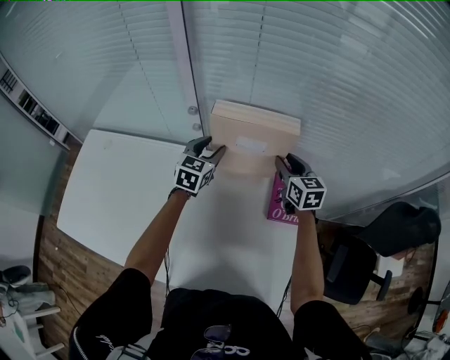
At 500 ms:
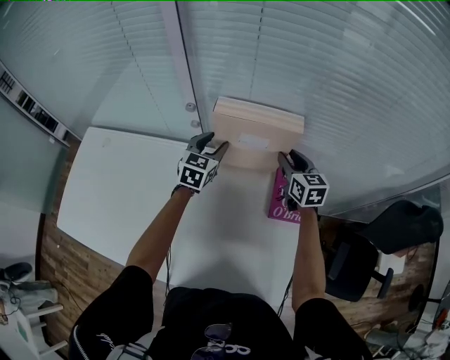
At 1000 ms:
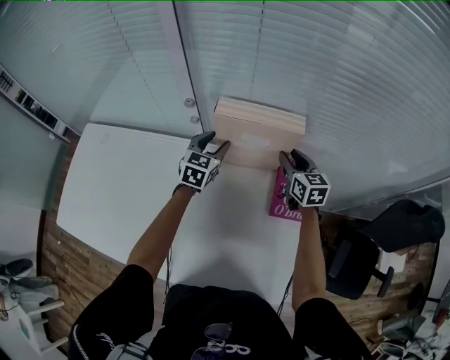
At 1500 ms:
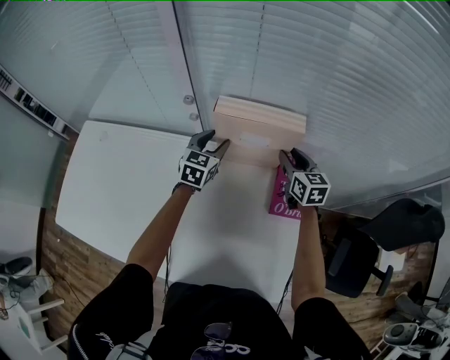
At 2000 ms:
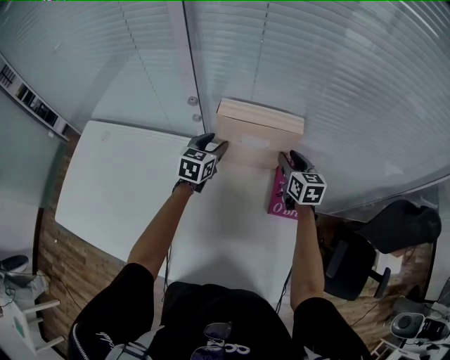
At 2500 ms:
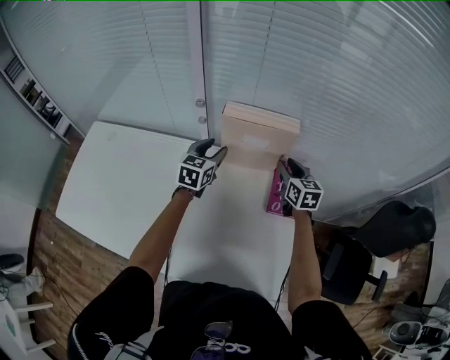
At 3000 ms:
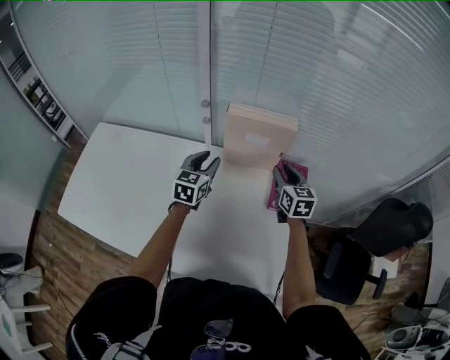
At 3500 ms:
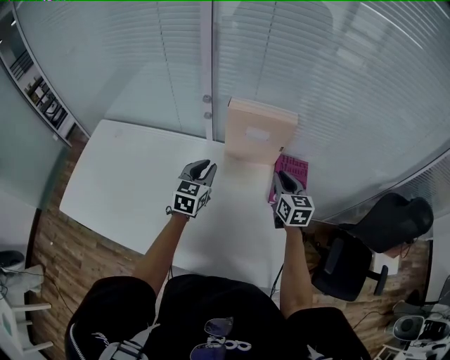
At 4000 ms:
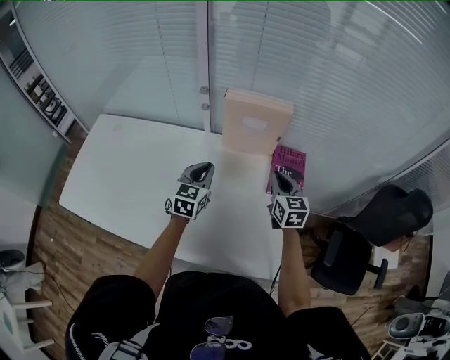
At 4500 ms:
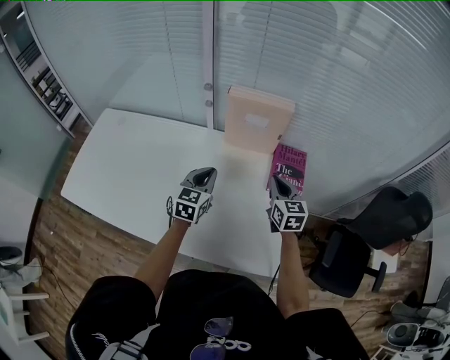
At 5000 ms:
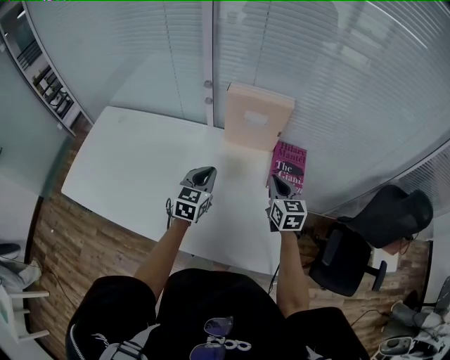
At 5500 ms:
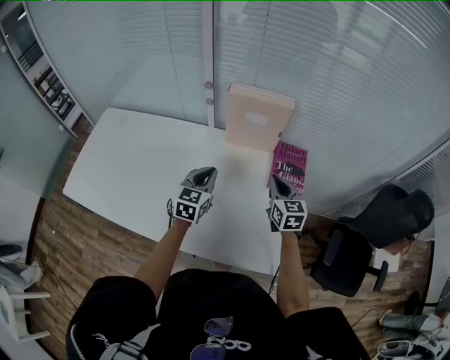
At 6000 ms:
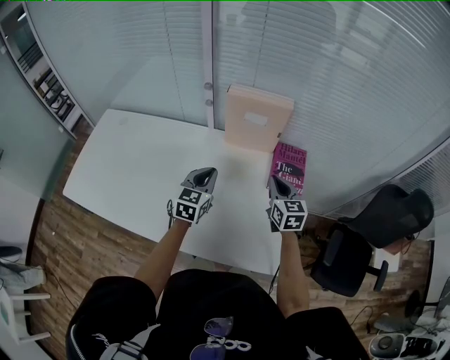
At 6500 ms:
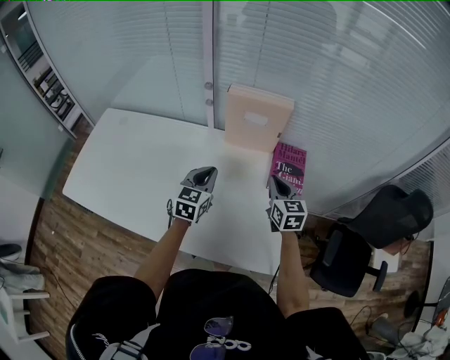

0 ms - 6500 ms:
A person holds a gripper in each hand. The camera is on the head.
0 ms - 2000 ms: There are only small adjustments of the grippers.
2000 ms - 4500 ms: Both grippers move backward, some 20 cm. The left gripper closes up. The right gripper closes.
4500 ms - 6500 ms: The two grippers keep their place.

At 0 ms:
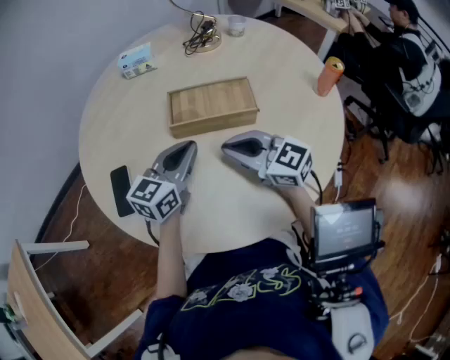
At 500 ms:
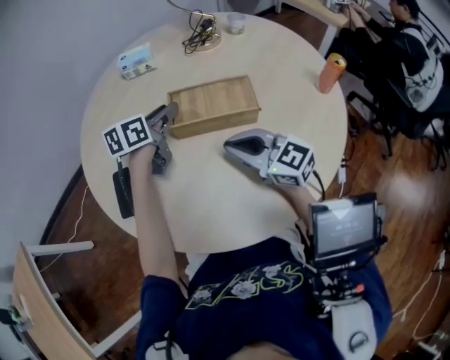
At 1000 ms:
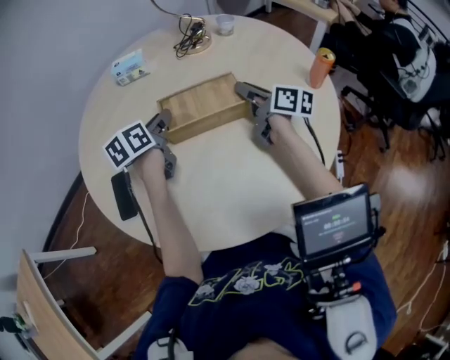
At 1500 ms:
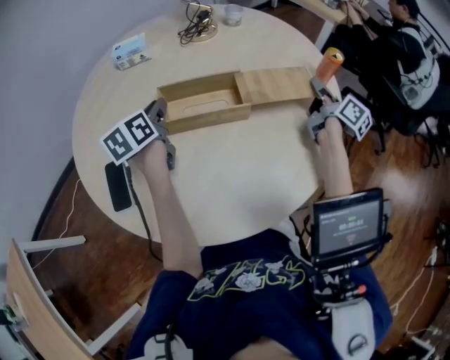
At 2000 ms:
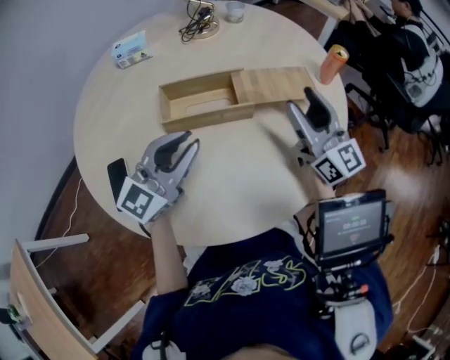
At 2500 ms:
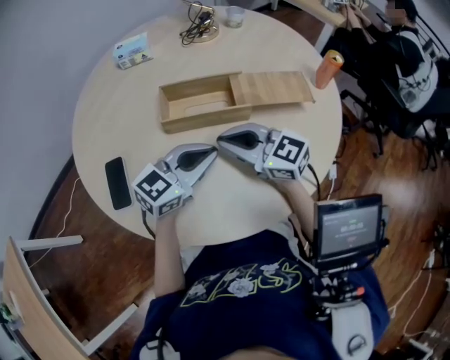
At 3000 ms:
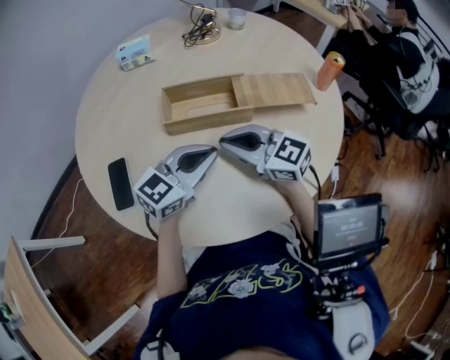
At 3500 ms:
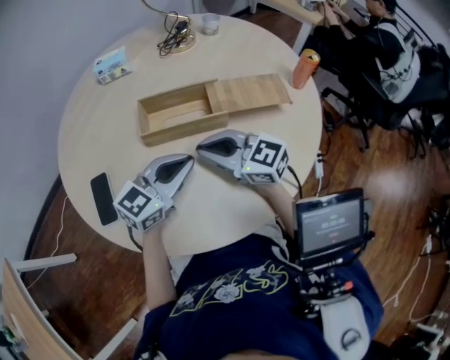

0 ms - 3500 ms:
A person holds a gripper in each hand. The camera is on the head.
0 ms - 2000 ms: The left gripper goes approximately 5 cm upward, changes its angle by approximately 30 degrees, and opens, then closes again. Meanwhile the right gripper turns by approximately 40 degrees, and opens up.
2000 ms - 3500 ms: The right gripper goes some 20 cm to the left and downward, changes its angle by some 40 degrees, and closes, while the left gripper goes some 5 cm downward.

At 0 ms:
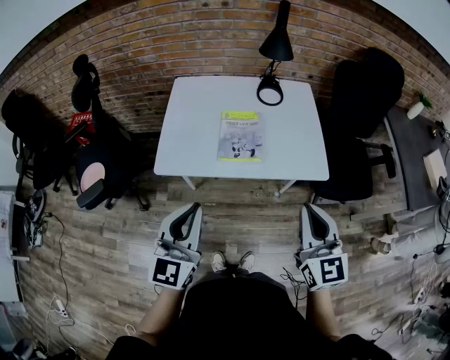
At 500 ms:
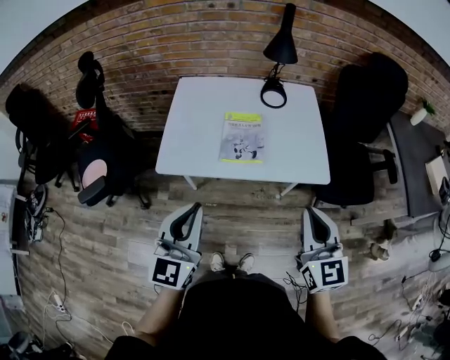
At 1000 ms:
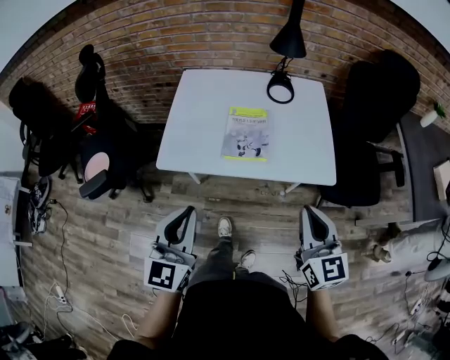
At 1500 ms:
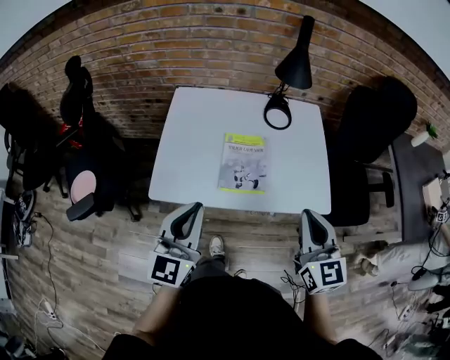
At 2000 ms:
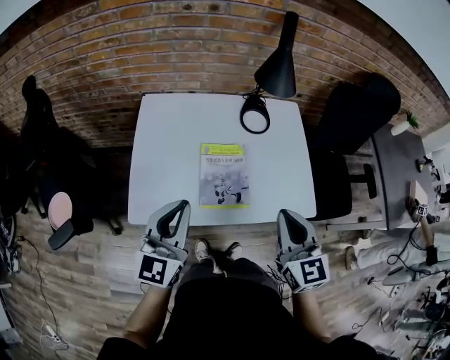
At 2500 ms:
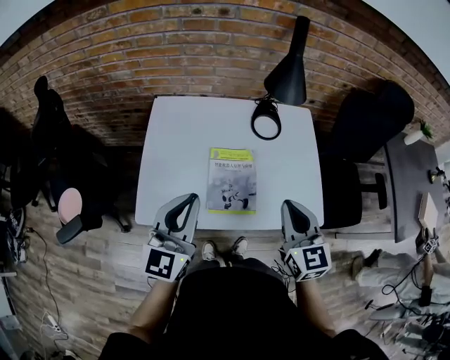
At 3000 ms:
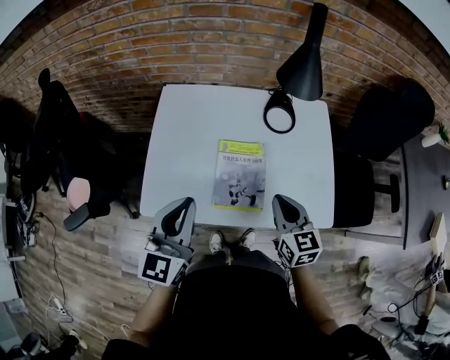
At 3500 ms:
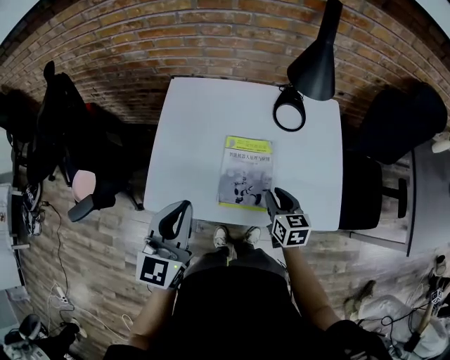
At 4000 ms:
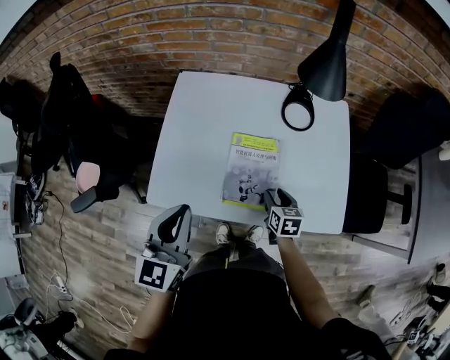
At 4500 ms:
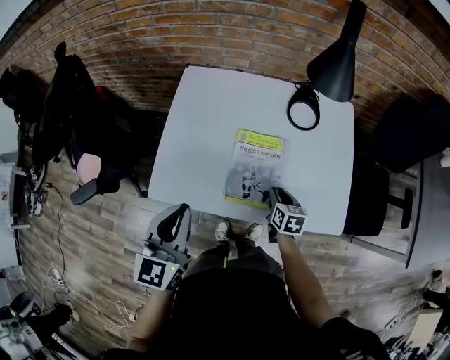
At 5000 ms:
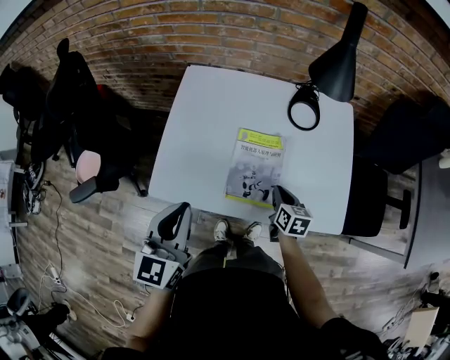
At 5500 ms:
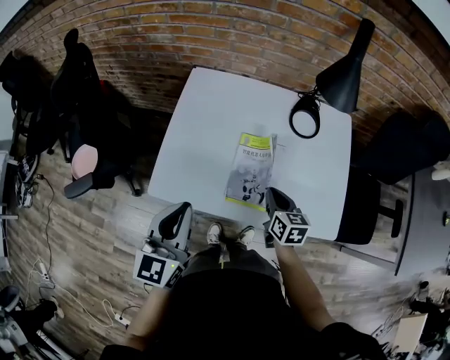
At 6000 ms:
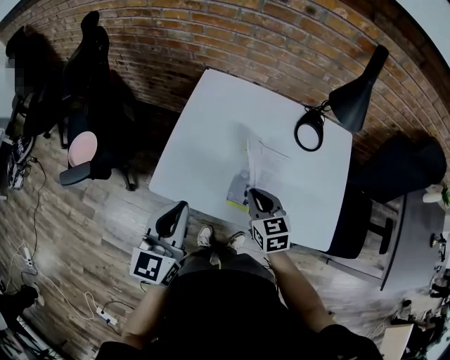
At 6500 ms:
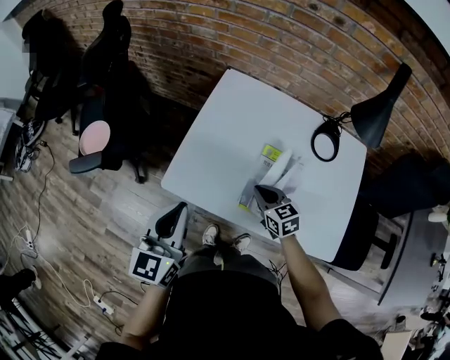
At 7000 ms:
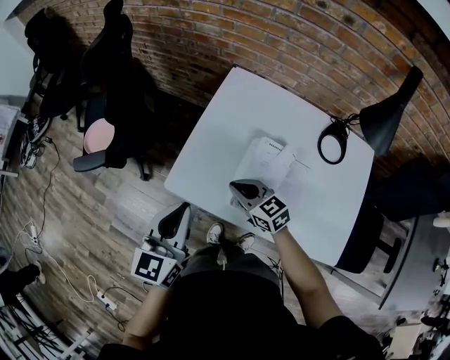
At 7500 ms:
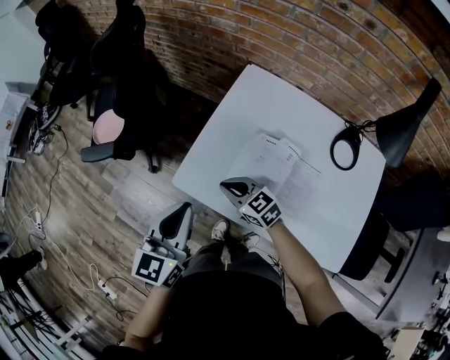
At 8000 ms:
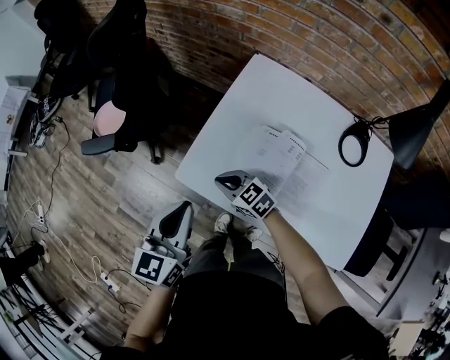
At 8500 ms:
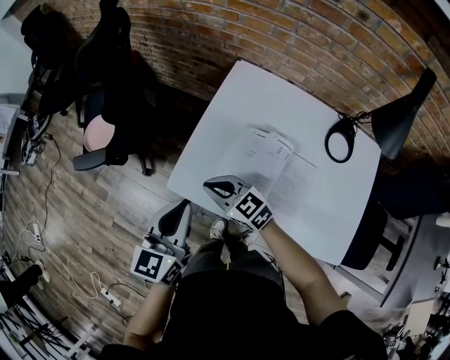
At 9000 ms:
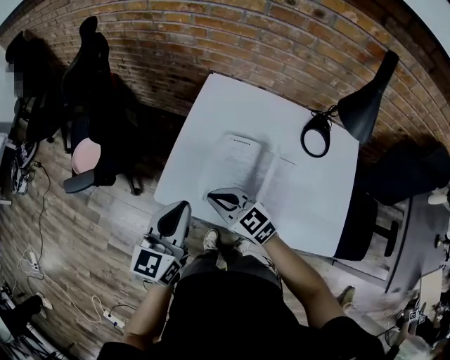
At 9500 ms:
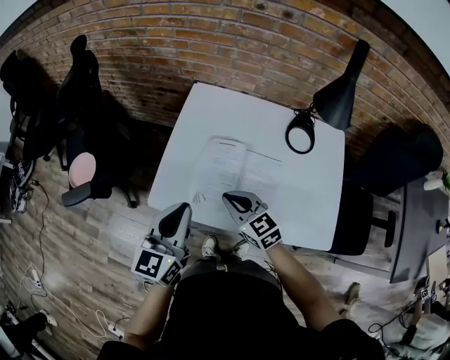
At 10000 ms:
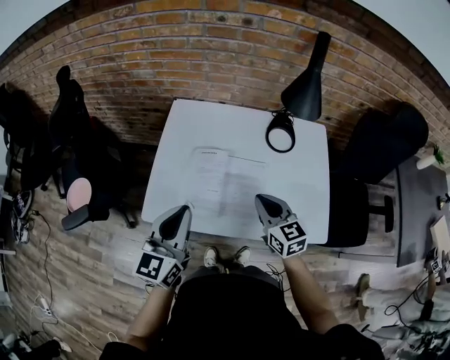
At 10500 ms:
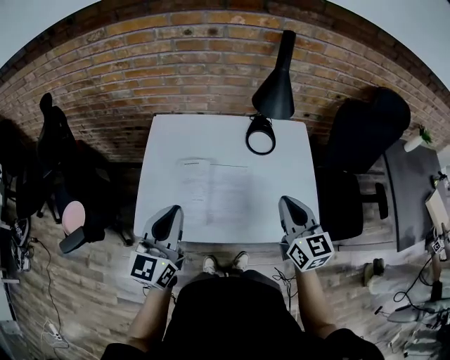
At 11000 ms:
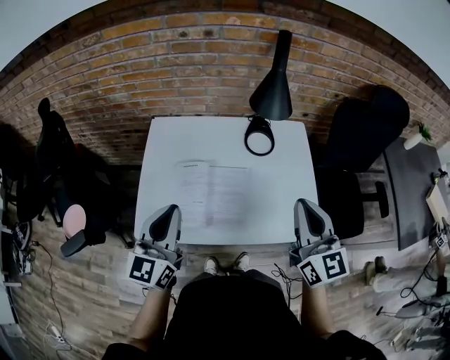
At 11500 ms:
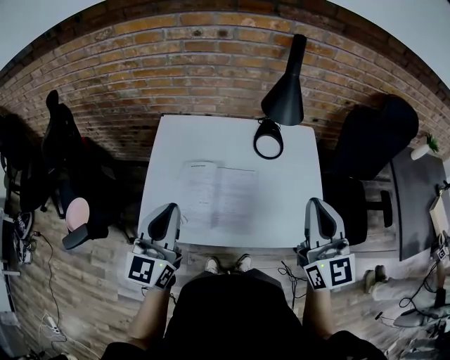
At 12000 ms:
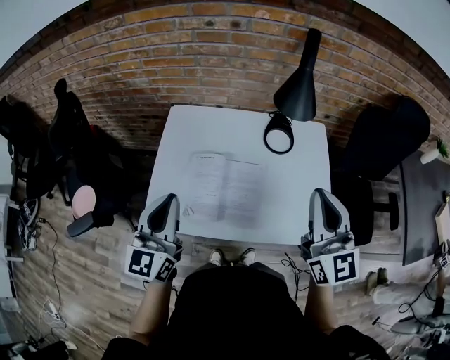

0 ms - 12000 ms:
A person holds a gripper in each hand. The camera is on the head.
0 ms - 2000 ms: Both grippers move forward, about 20 cm.
2000 ms - 4000 ms: The right gripper is displaced downward by roughly 30 cm, rotates approximately 40 degrees, and opens its fingers.
4000 ms - 6000 ms: The right gripper goes approximately 15 cm to the left and upward, swivels roughly 30 degrees, and closes its fingers; the left gripper travels to the left by about 5 cm.
6000 ms - 8000 ms: The right gripper shifts by roughly 25 cm, and swivels about 50 degrees; the left gripper ends up roughly 5 cm from where it was.
8000 ms - 10000 ms: The left gripper shifts by about 15 cm, and swivels roughly 30 degrees, while the right gripper moves approximately 35 cm, and swivels approximately 60 degrees.
10000 ms - 12000 ms: The right gripper shifts some 25 cm upward and to the right, and turns by roughly 30 degrees; the left gripper changes place by some 5 cm.

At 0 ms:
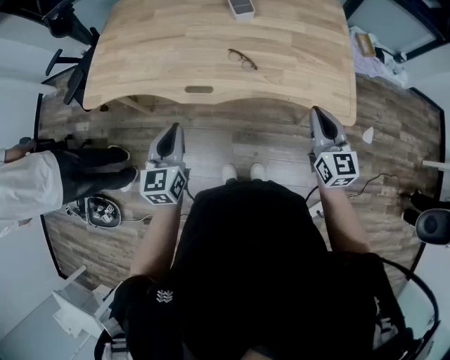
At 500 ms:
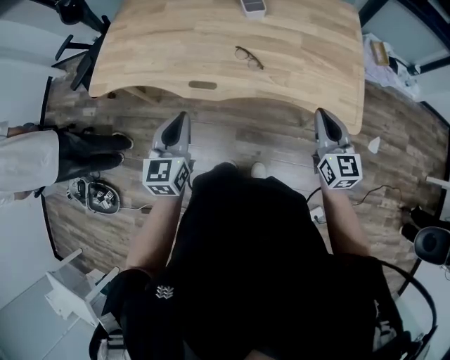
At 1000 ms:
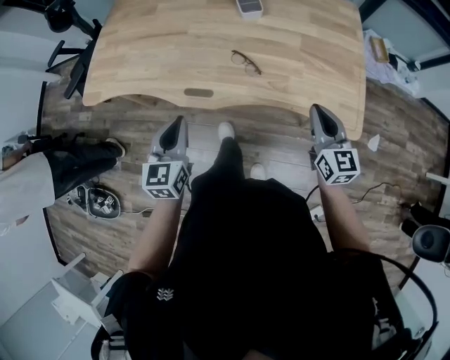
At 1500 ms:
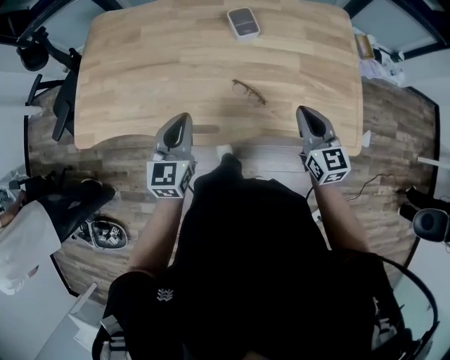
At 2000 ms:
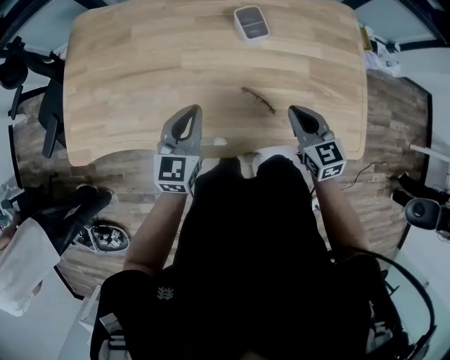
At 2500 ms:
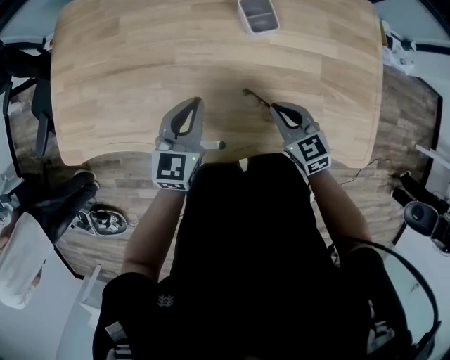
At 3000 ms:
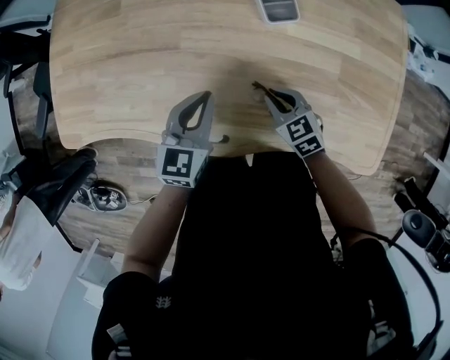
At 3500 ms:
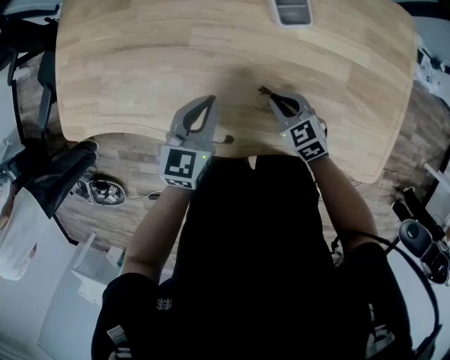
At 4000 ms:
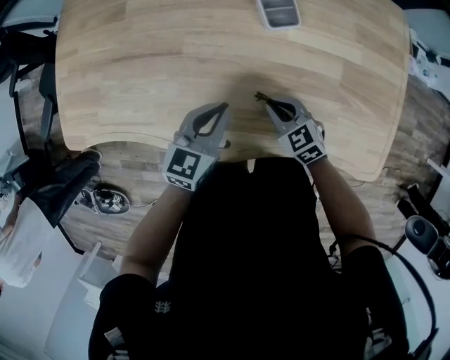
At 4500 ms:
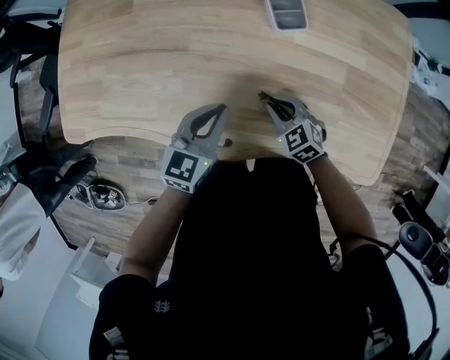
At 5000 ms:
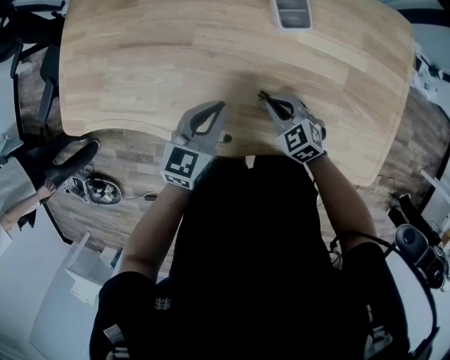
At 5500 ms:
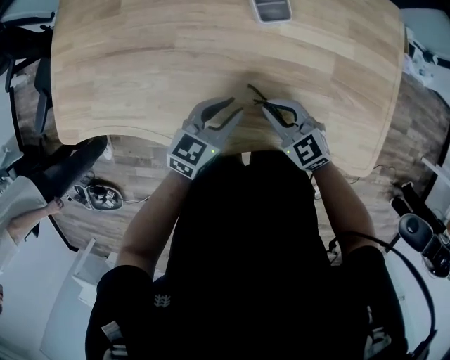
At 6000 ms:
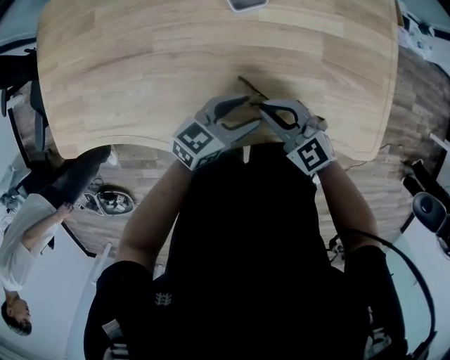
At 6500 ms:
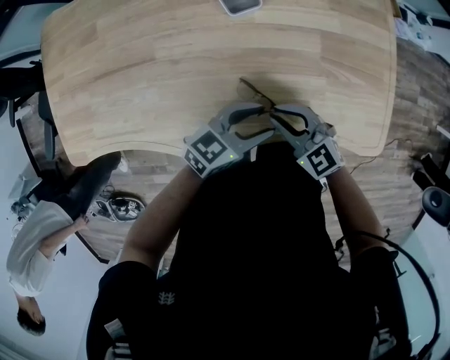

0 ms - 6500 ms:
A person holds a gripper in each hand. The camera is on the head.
0 ms - 2000 ms: The left gripper travels forward by approximately 35 cm. Meanwhile the right gripper goes about 30 cm forward and to the left, and swivels some 20 degrees.
2000 ms - 4500 ms: The right gripper travels downward by roughly 20 cm, and rotates about 40 degrees. The left gripper is displaced downward and to the right by approximately 10 cm.
4500 ms - 6500 ms: The right gripper ends up approximately 10 cm from where it was. The left gripper shifts by about 20 cm, changes its angle by roughly 40 degrees, and opens its fingers.
